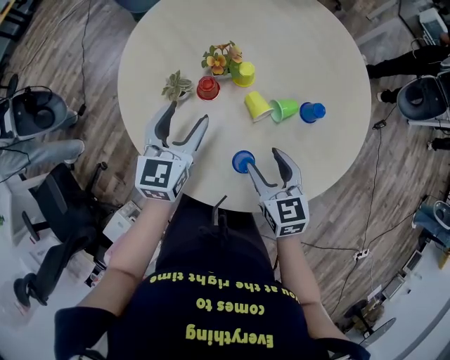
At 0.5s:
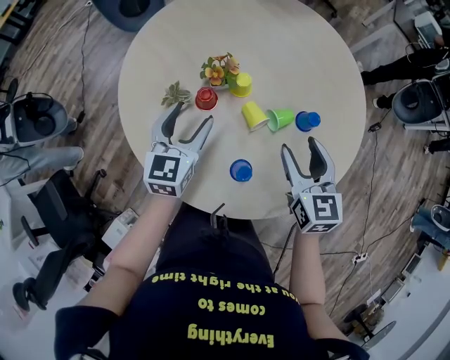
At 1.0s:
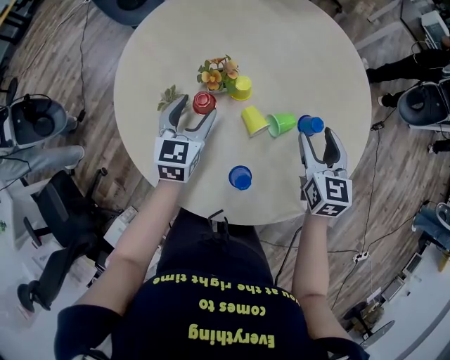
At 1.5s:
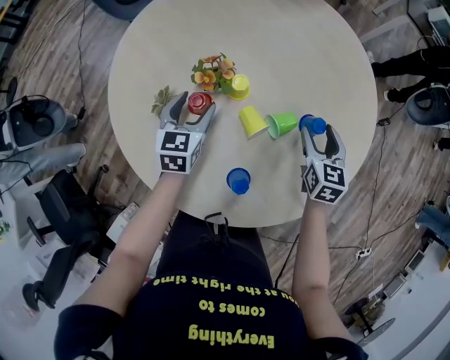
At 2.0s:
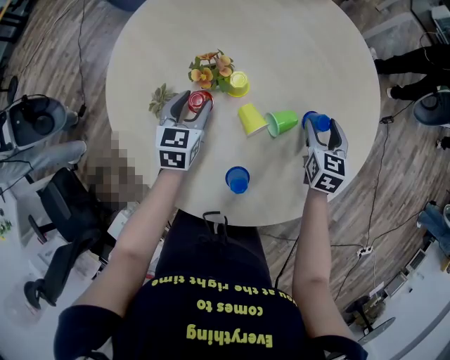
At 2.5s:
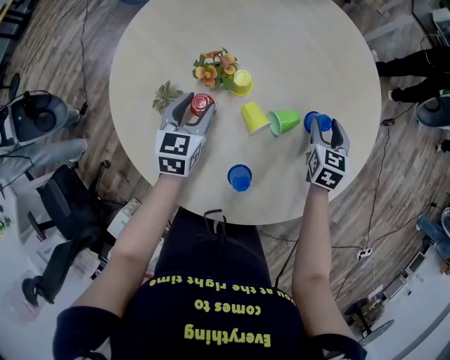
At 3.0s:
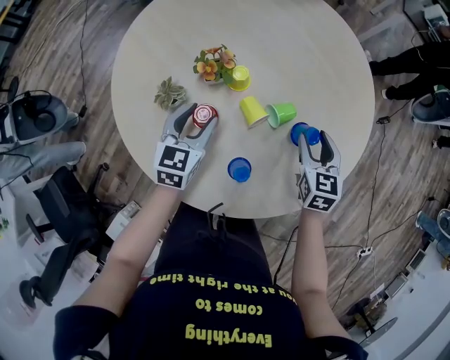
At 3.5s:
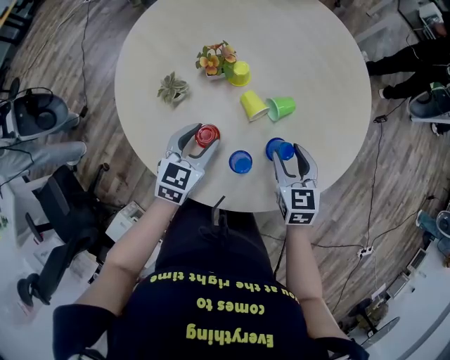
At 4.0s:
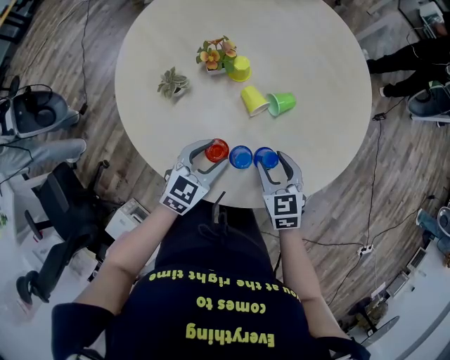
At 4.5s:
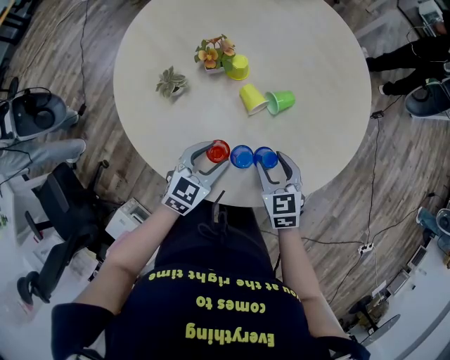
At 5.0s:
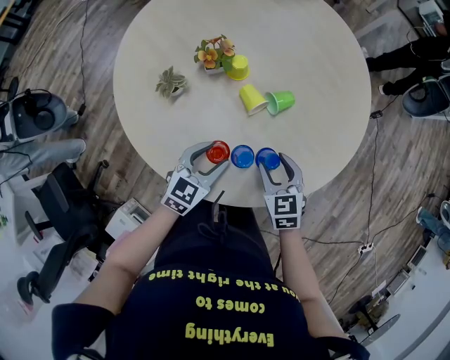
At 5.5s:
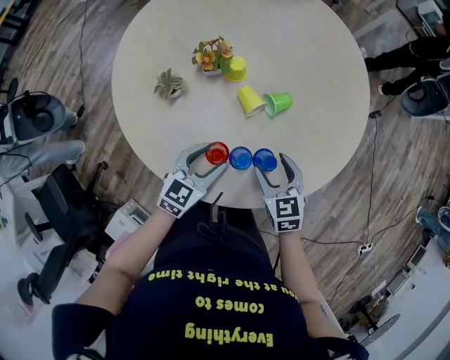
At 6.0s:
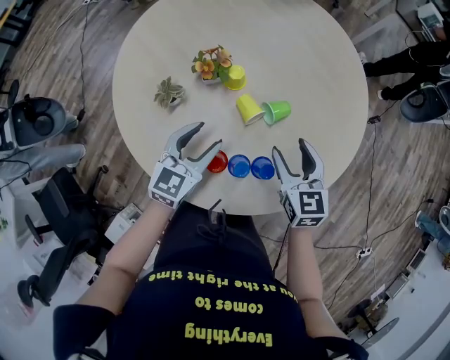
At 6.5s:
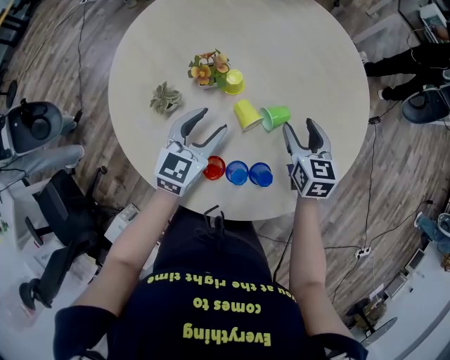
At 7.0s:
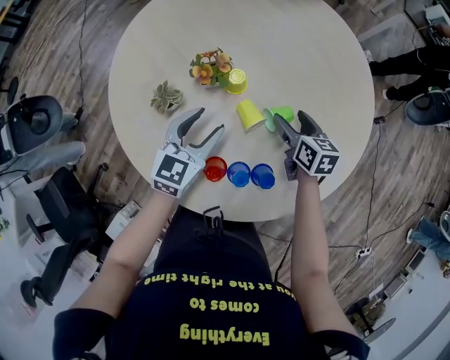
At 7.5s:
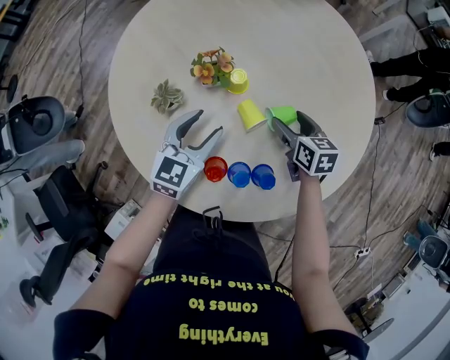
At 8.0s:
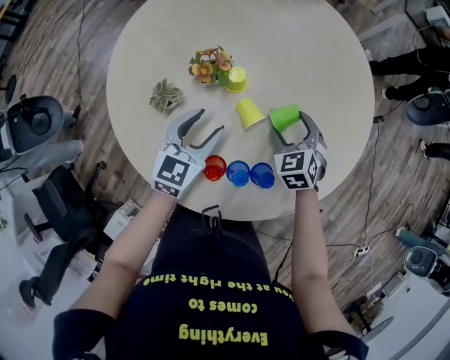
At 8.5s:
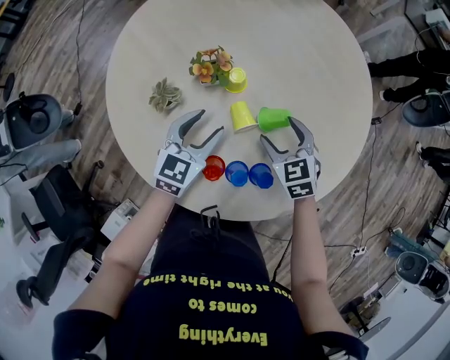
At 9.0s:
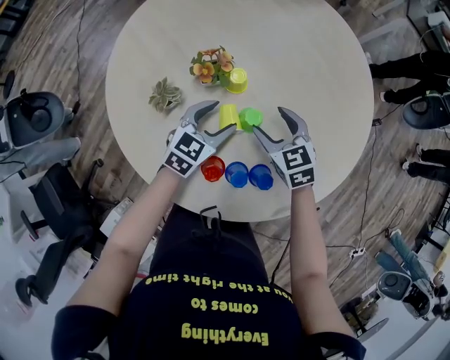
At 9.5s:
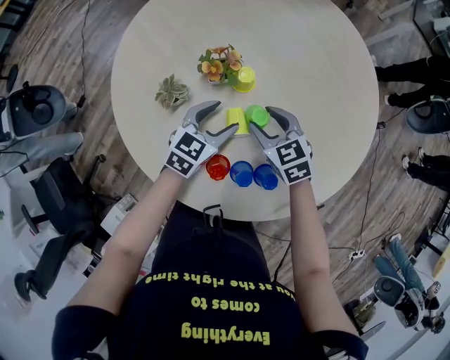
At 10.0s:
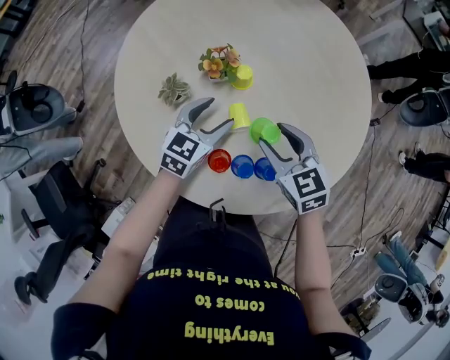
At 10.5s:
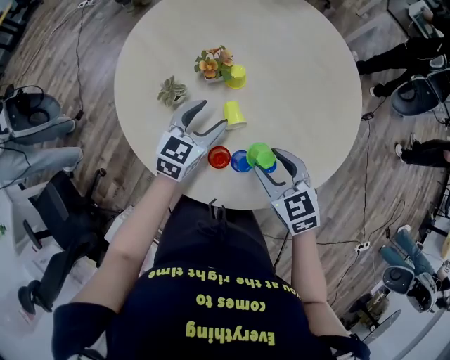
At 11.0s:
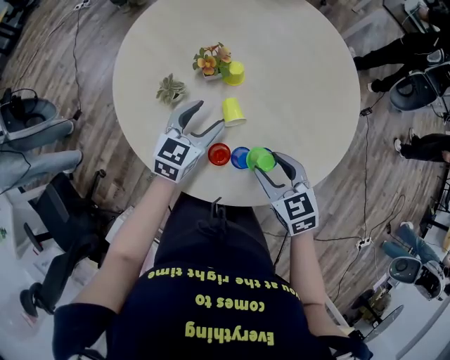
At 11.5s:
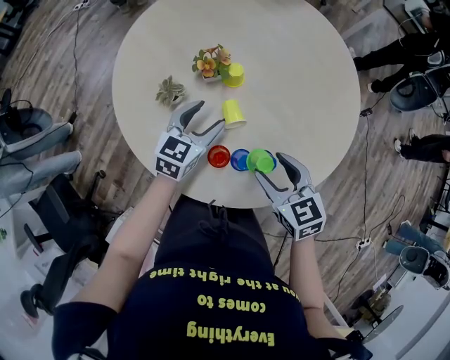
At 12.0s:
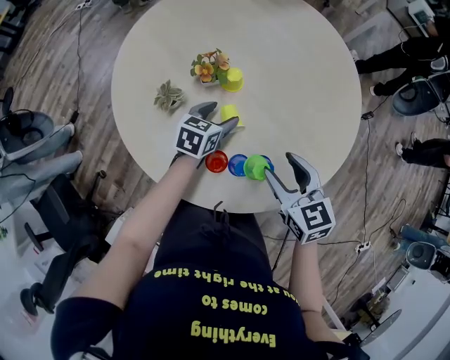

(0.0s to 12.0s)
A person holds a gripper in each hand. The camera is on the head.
0.0s - 2.0s: The left gripper goes roughly 15 cm downward and forward, while the right gripper moves forward and to the right, roughly 25 cm, and turns by approximately 30 degrees.
2.0s - 4.0s: The right gripper shifts some 25 cm backward and to the left, and rotates some 20 degrees, while the left gripper moves backward and to the right, about 20 cm, and swivels some 30 degrees.
4.0s - 6.0s: The left gripper goes about 10 cm forward and upward. The right gripper travels upward and forward by roughly 10 cm.
6.0s - 8.0s: The left gripper shifts about 5 cm forward. Meanwhile the right gripper is displaced downward and forward by approximately 15 cm, and rotates approximately 30 degrees.
8.0s - 10.0s: The right gripper goes some 15 cm upward, to the left and backward, turns by approximately 30 degrees, and closes its fingers.
10.0s - 12.0s: The right gripper is displaced backward by some 5 cm; the left gripper moves roughly 5 cm.

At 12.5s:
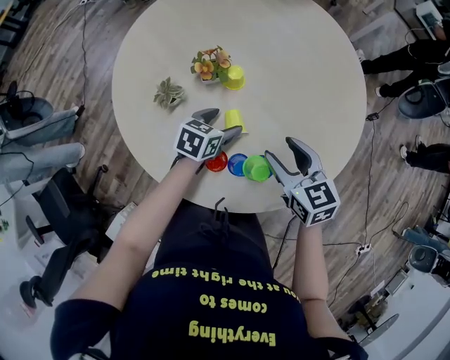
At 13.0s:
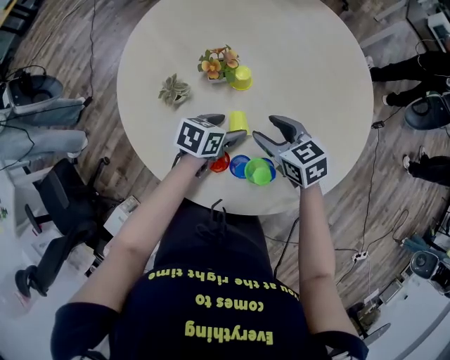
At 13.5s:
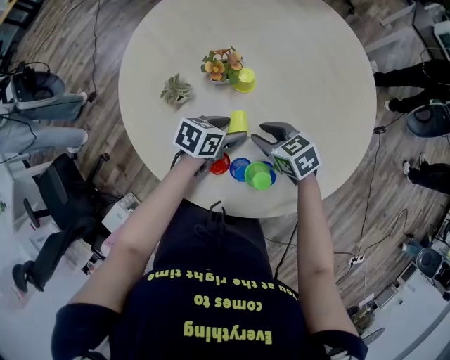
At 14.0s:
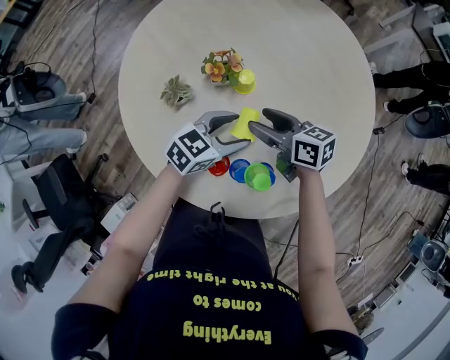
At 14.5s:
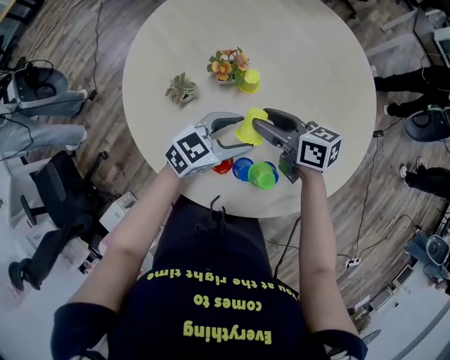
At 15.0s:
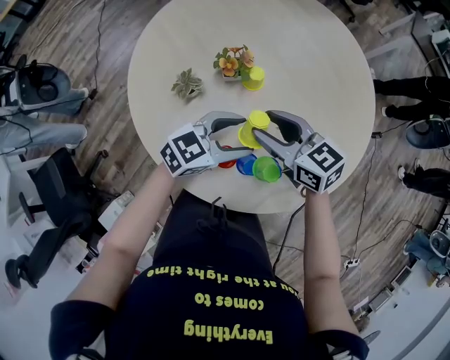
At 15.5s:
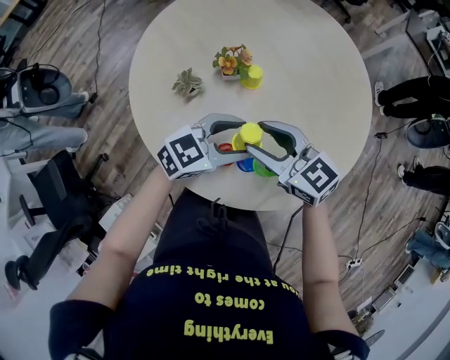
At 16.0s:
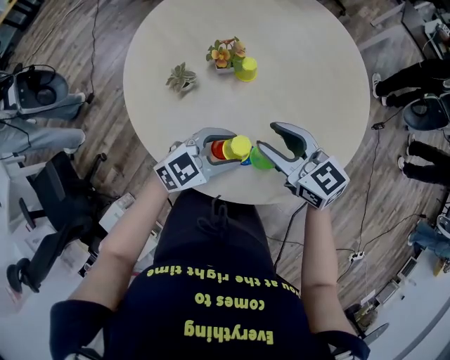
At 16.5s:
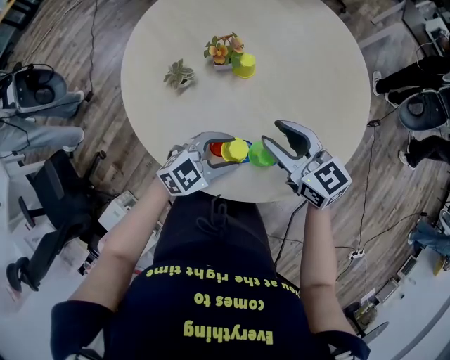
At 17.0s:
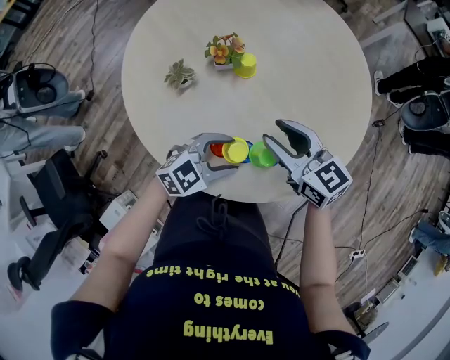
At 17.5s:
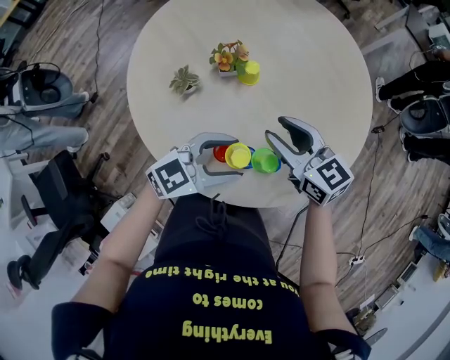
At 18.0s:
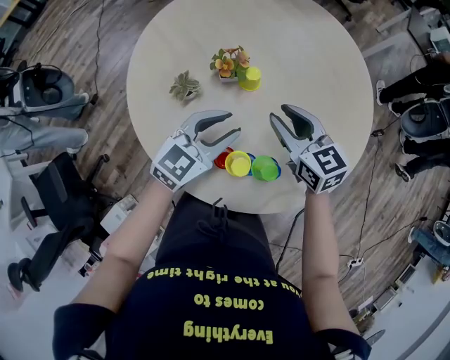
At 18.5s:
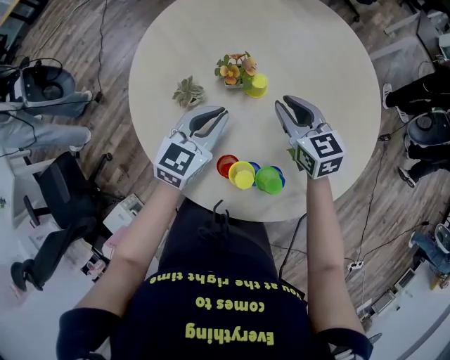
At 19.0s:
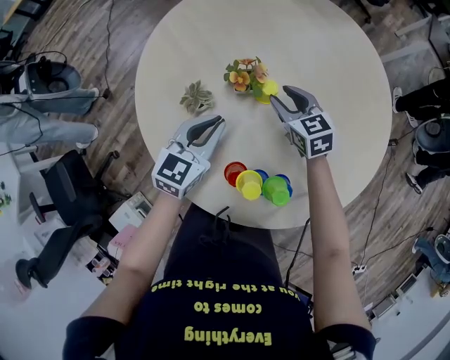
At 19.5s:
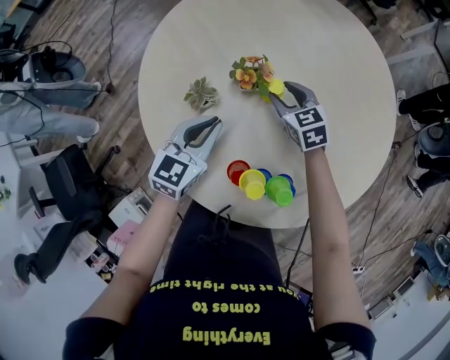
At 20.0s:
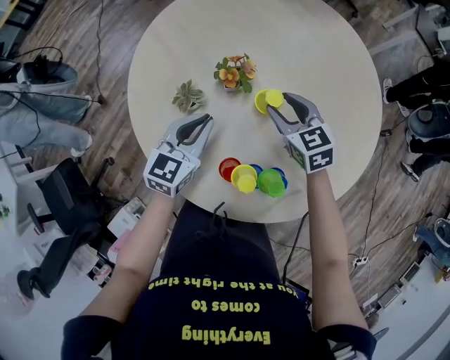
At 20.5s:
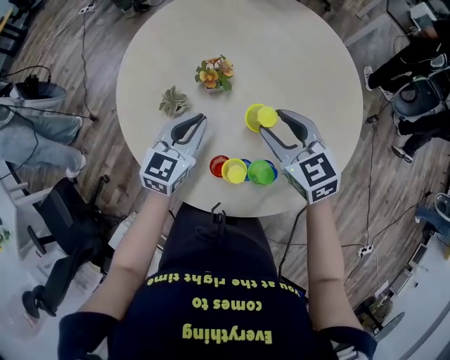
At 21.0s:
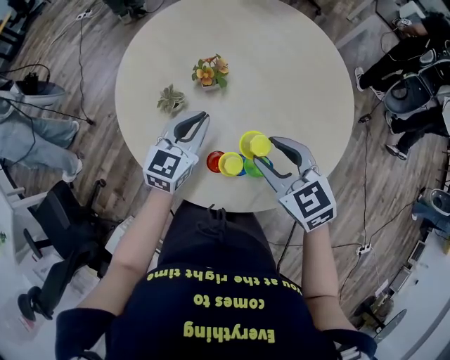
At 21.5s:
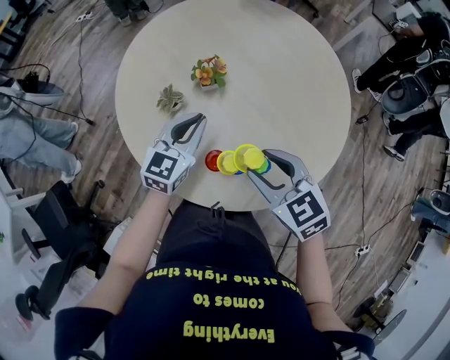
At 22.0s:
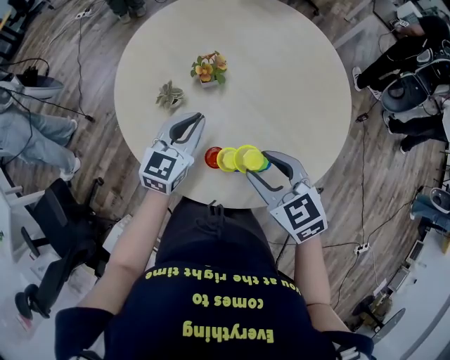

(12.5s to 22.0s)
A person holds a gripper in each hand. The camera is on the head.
12.5s - 14.5s: The right gripper reaches about 10 cm downward, then returns, and changes its angle by roughly 30 degrees. The left gripper goes roughly 10 cm upward, and swivels roughly 30 degrees.
14.5s - 16.5s: The right gripper changes place by some 10 cm, and rotates roughly 30 degrees. Meanwhile the left gripper changes place by some 10 cm.
16.5s - 18.0s: The right gripper shifts some 10 cm forward; the left gripper moves forward, upward and to the left, about 15 cm, and turns by approximately 20 degrees.
18.0s - 20.0s: The left gripper is displaced to the left and forward by approximately 10 cm, while the right gripper goes roughly 10 cm forward and downward.
20.0s - 22.0s: The right gripper heads backward and upward, covering some 25 cm. The left gripper changes place by some 5 cm.

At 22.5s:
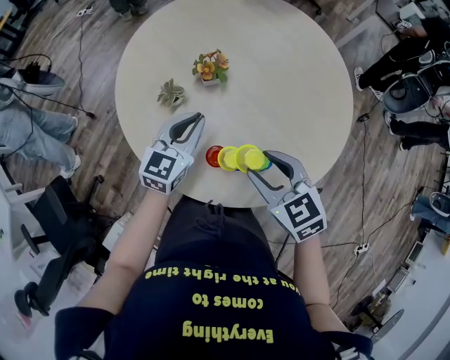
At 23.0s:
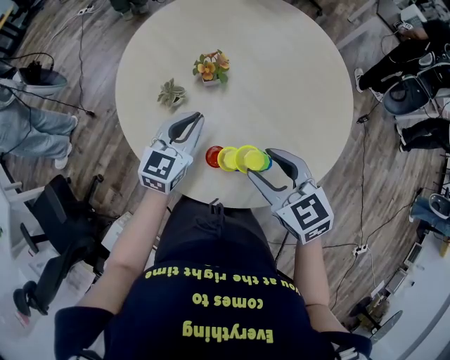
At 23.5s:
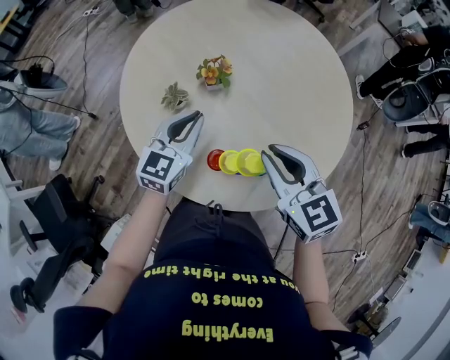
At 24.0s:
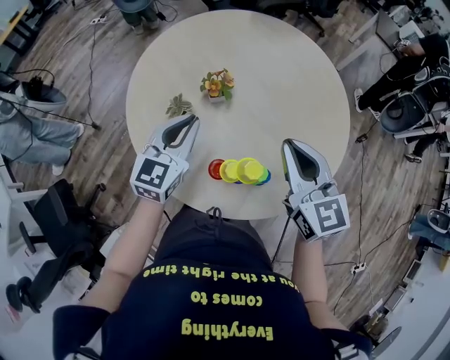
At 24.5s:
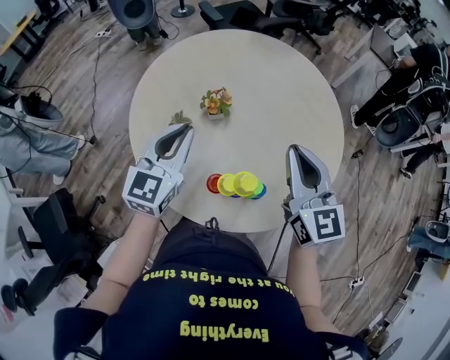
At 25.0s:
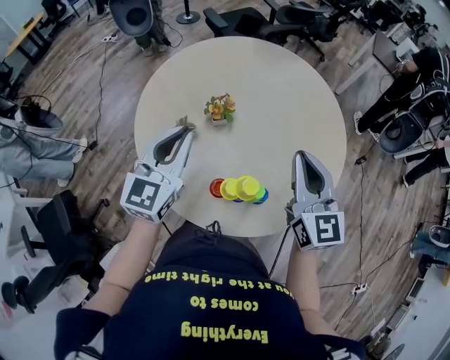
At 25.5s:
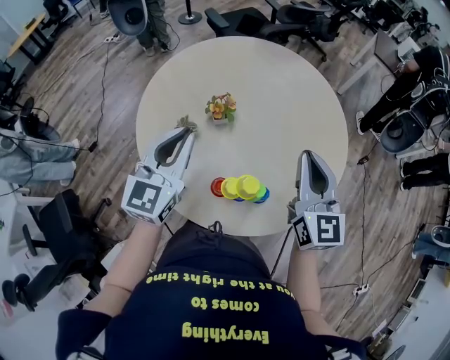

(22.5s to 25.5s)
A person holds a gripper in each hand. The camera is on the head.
22.5s - 24.0s: The left gripper goes some 5 cm upward. The right gripper goes some 15 cm upward and forward, swivels about 30 degrees, and closes its fingers.
24.0s - 25.5s: The right gripper shifts some 5 cm to the right, while the left gripper travels upward by roughly 10 cm.

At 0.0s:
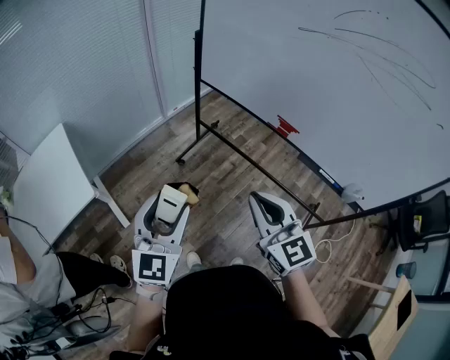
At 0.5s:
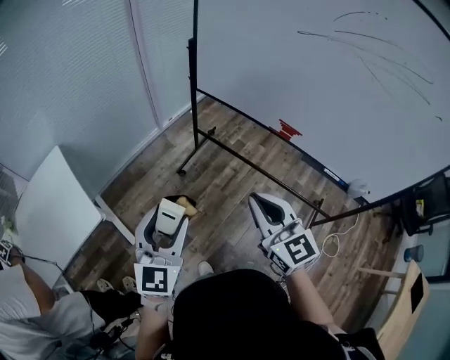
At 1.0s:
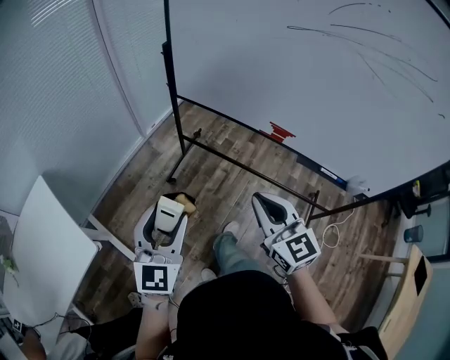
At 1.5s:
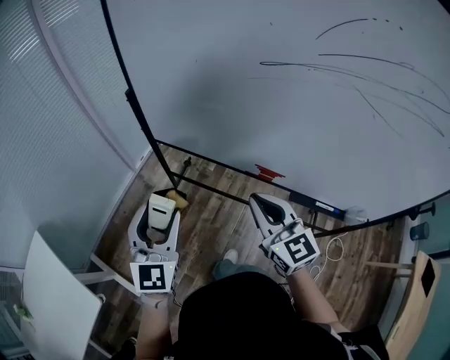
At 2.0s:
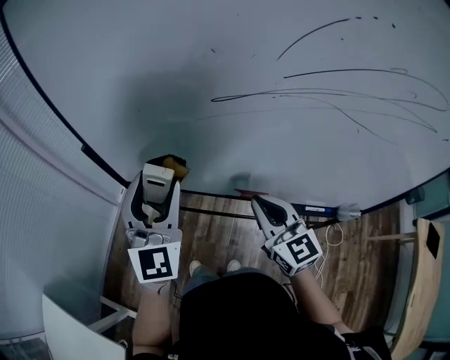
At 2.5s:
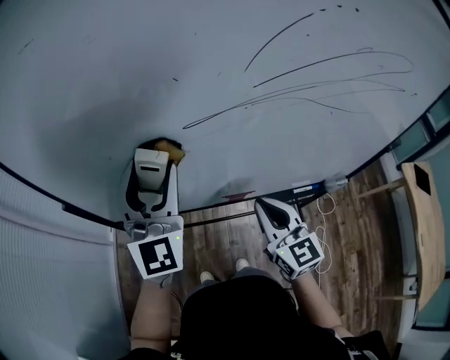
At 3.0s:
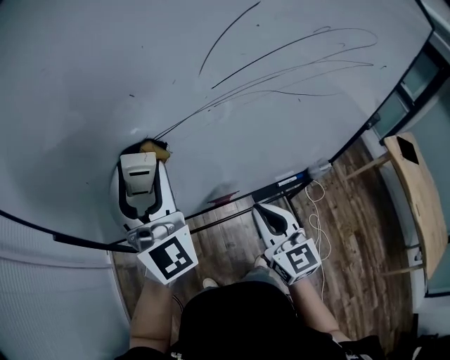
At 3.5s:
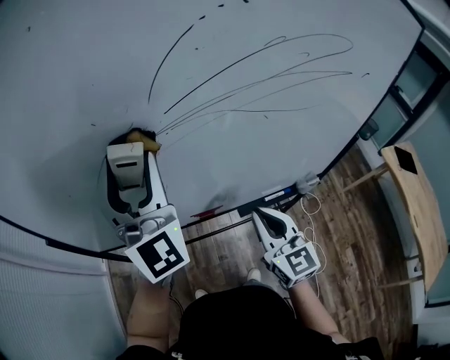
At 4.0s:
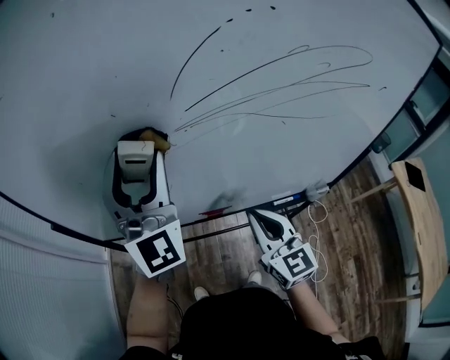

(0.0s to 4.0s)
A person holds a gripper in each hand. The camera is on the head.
0.0s - 2.0s: The right gripper is displaced forward and to the right by about 40 cm, and turns by some 30 degrees, while the left gripper is displaced forward by about 50 cm, and turns by approximately 20 degrees.
2.0s - 4.0s: The right gripper heads to the right, covering some 10 cm, and changes its angle by some 20 degrees. Meanwhile the left gripper goes roughly 15 cm upward, to the right and forward, and rotates roughly 20 degrees.
